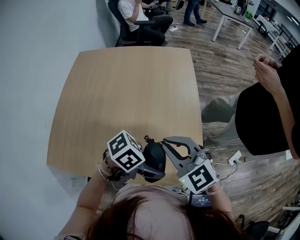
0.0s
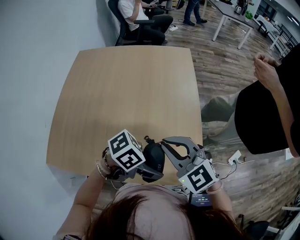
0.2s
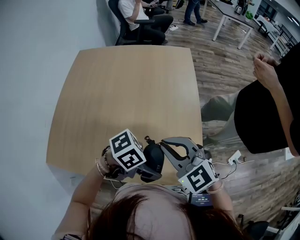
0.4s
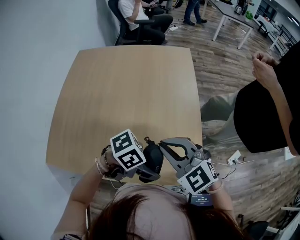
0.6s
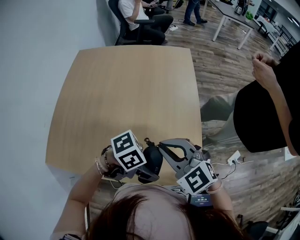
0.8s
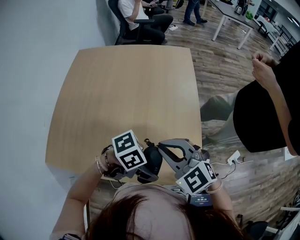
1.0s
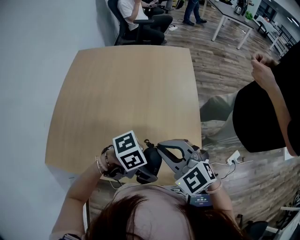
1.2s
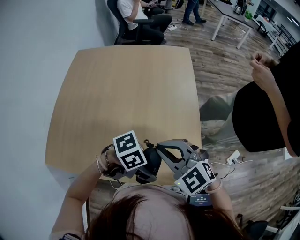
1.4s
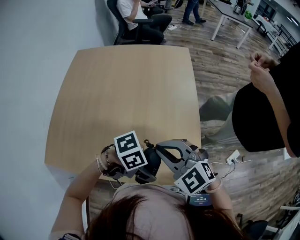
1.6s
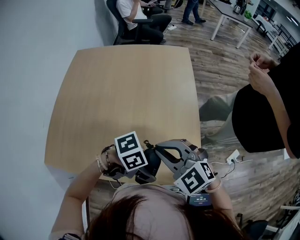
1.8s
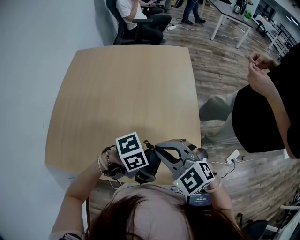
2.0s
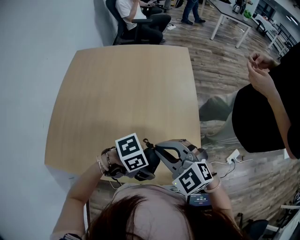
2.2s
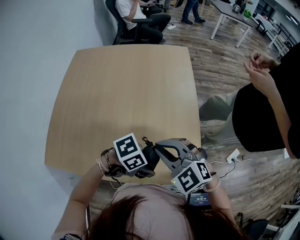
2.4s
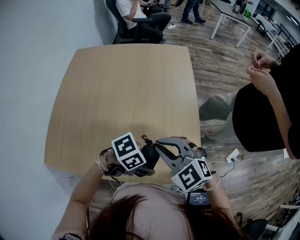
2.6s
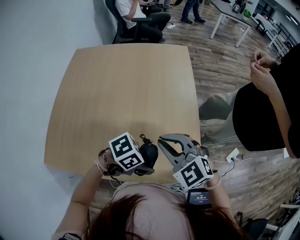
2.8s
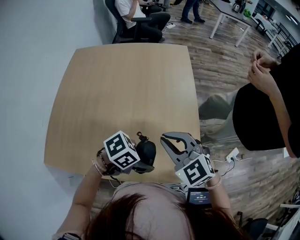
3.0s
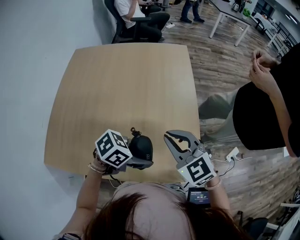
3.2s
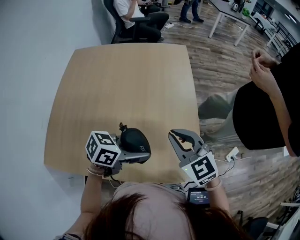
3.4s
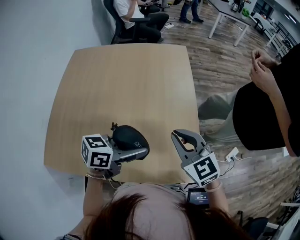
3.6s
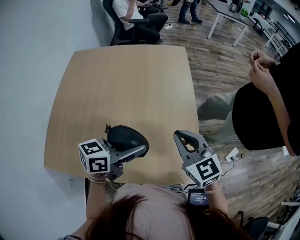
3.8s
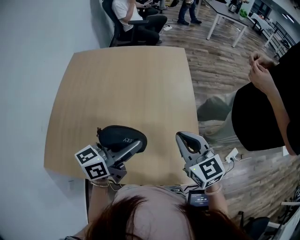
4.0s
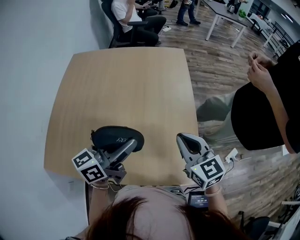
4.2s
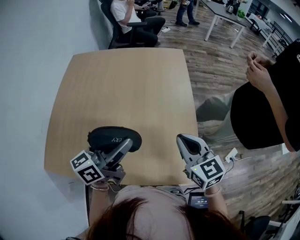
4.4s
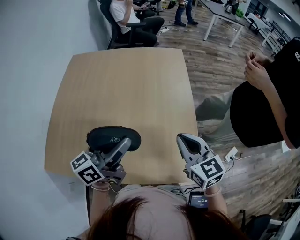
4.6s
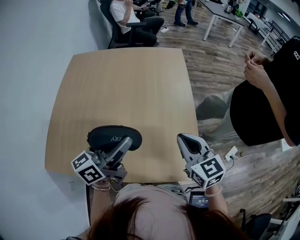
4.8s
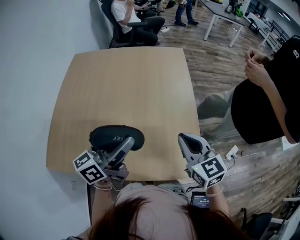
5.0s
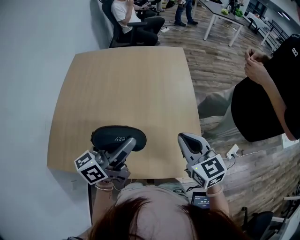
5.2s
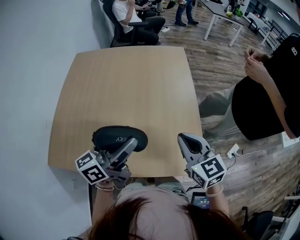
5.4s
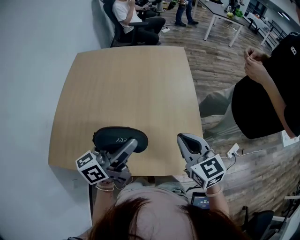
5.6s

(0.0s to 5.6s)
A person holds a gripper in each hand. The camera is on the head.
0.0s - 1.4s: The grippers stay close to where they were, moving slightly.
1.4s - 2.8s: The grippers make only small movements.
2.8s - 4.2s: The left gripper shifts about 15 cm upward, and points its fingers roughly 50 degrees further upward. Meanwhile the right gripper changes place by some 10 cm, and rotates approximately 40 degrees.
4.2s - 5.6s: The grippers both shift backward by some 5 cm.

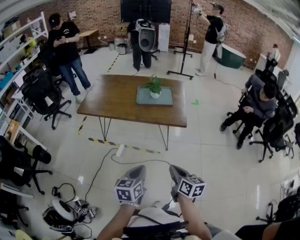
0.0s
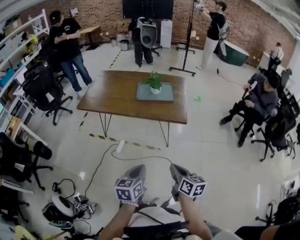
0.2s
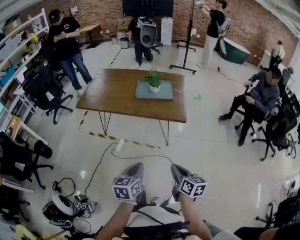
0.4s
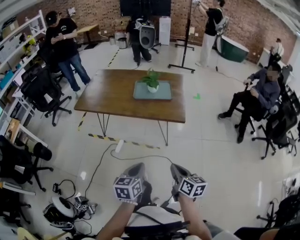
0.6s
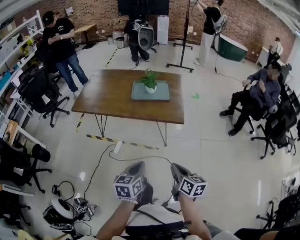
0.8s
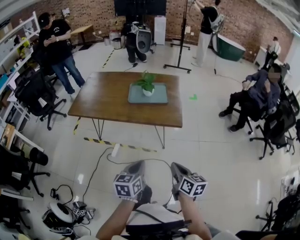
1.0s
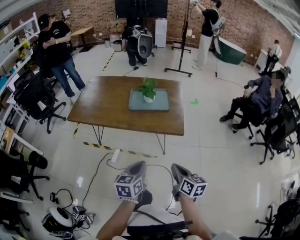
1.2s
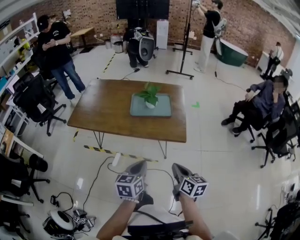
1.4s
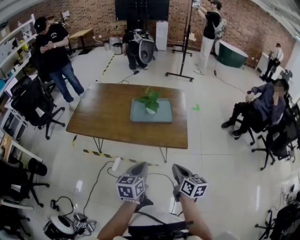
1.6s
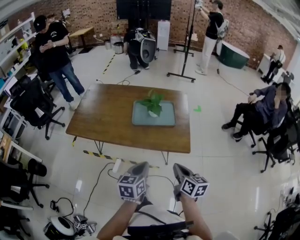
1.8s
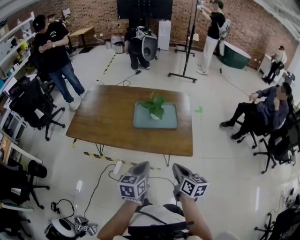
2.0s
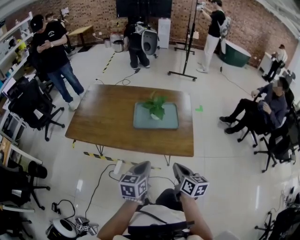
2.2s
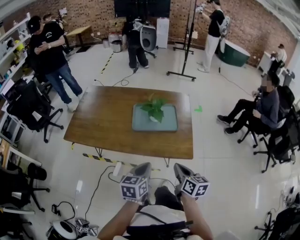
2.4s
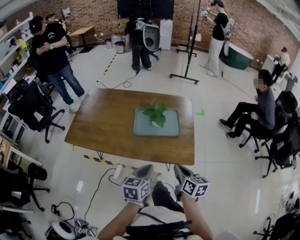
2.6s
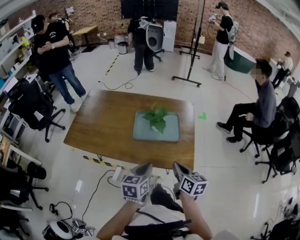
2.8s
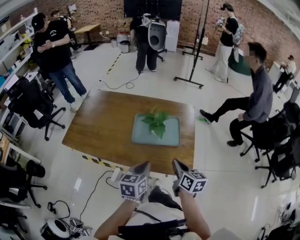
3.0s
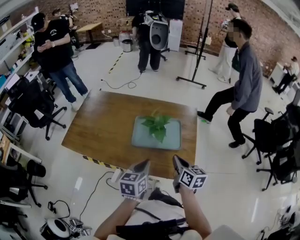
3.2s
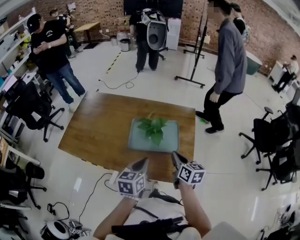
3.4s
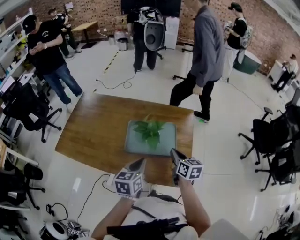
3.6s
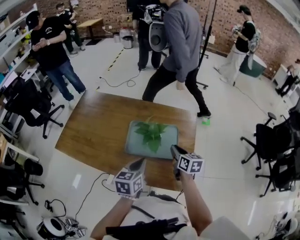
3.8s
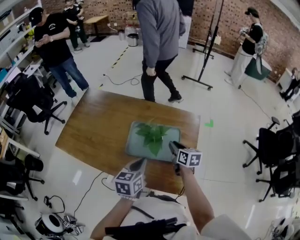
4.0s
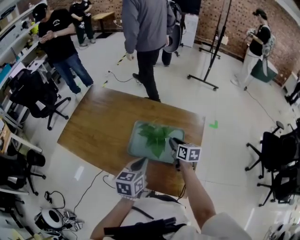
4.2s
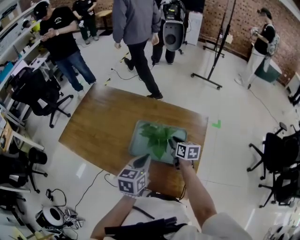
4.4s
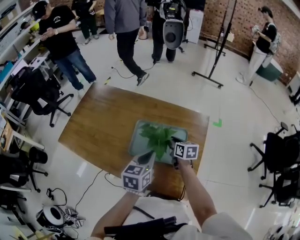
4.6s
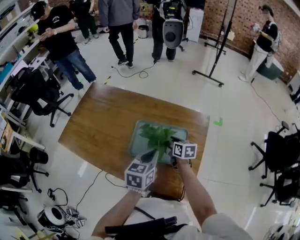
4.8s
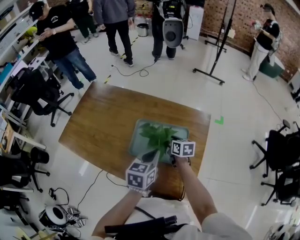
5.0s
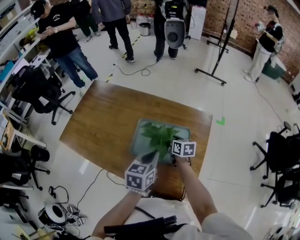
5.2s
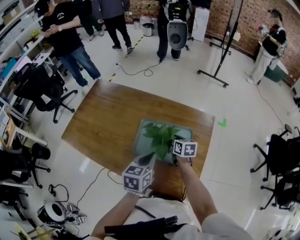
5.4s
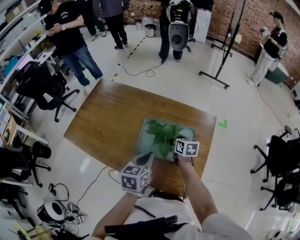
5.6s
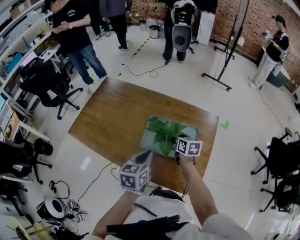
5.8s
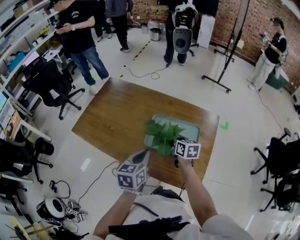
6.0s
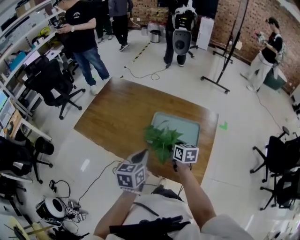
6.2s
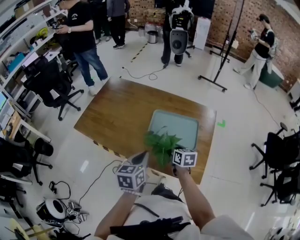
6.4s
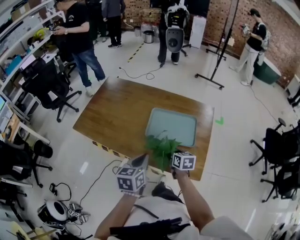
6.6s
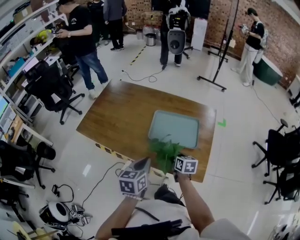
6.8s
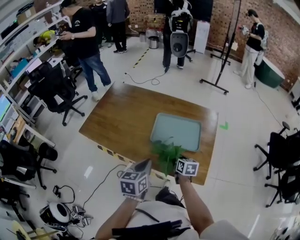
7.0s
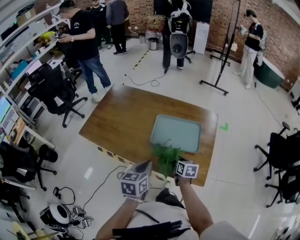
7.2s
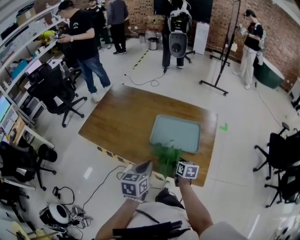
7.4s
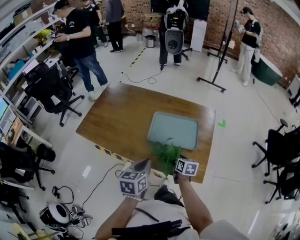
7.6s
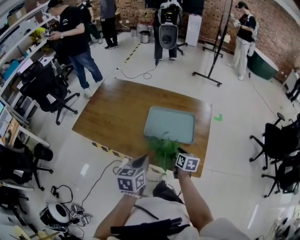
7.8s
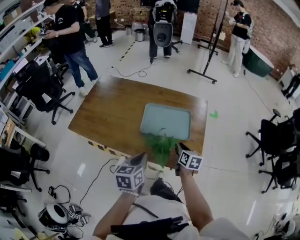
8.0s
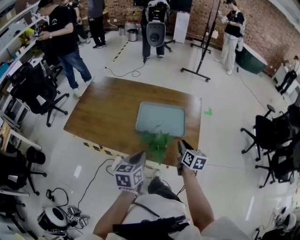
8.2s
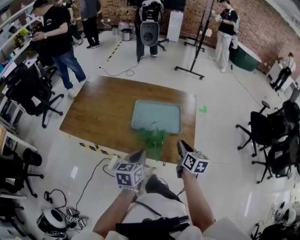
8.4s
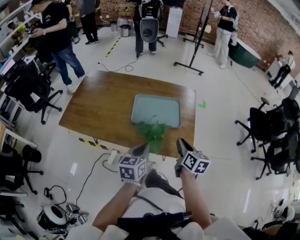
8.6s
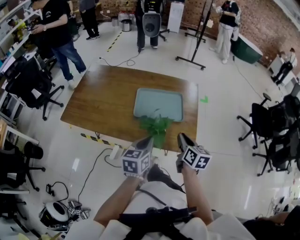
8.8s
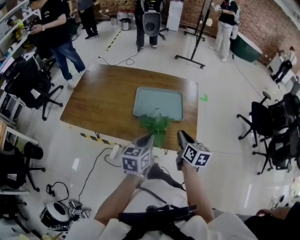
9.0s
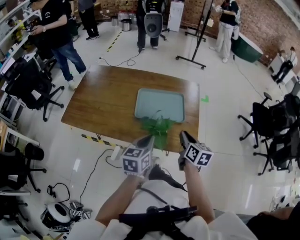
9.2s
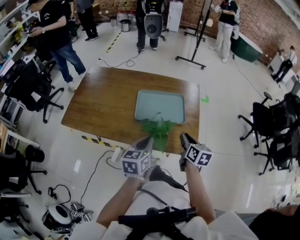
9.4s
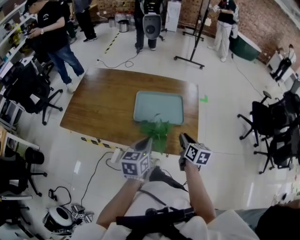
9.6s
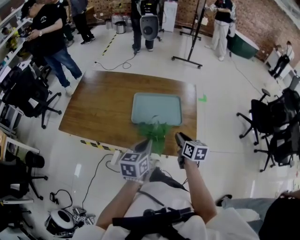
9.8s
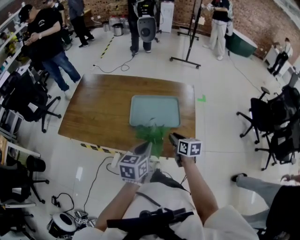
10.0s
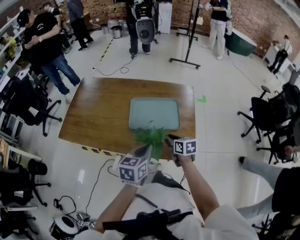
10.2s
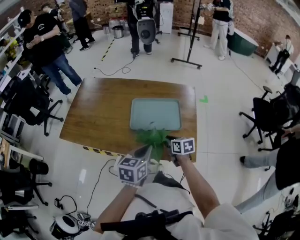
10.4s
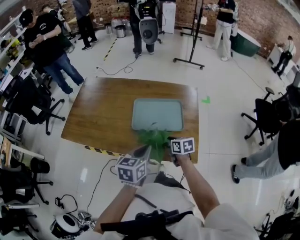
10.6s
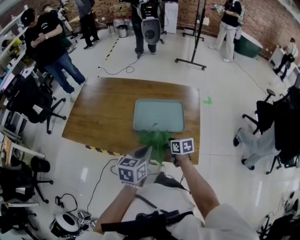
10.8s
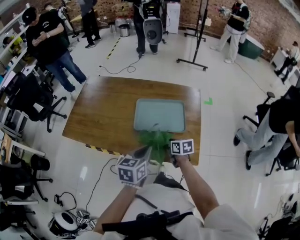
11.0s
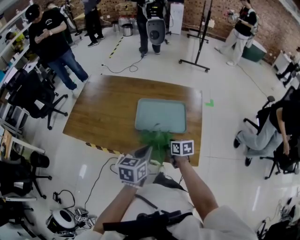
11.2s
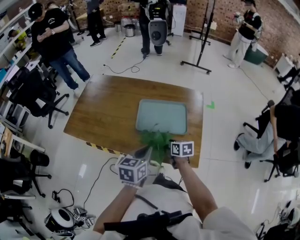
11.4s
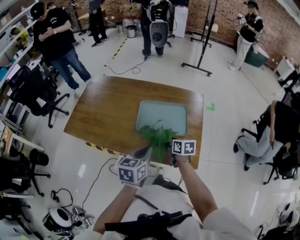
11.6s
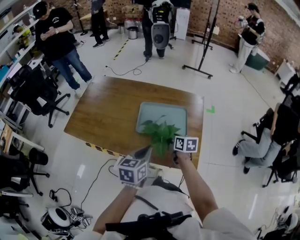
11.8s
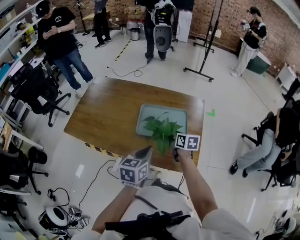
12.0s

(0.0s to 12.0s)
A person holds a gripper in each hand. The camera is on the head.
0.0s - 1.6s: The two grippers go roughly 20 cm forward.
1.6s - 3.0s: The two grippers go about 20 cm forward.
3.0s - 4.4s: The left gripper goes about 15 cm forward, while the right gripper shifts approximately 30 cm forward, and opens its fingers.
4.4s - 6.0s: Both grippers move to the left, roughly 10 cm.
6.0s - 7.6s: The right gripper moves backward and downward, about 15 cm; the left gripper goes some 10 cm backward.
7.6s - 9.0s: The right gripper moves upward, backward and to the right, approximately 15 cm, while the left gripper travels to the right by about 5 cm.
9.0s - 10.4s: The right gripper is displaced downward, forward and to the left by about 15 cm, and turns by approximately 20 degrees.
10.4s - 12.0s: The right gripper is displaced forward by roughly 10 cm.

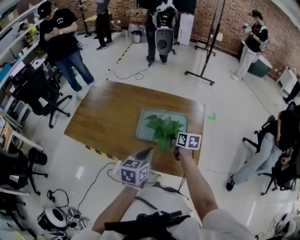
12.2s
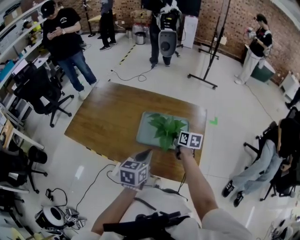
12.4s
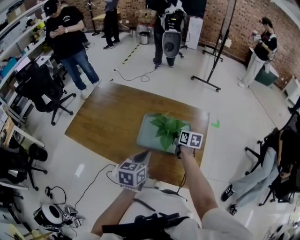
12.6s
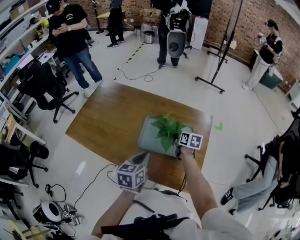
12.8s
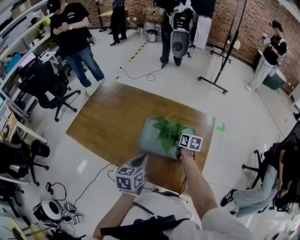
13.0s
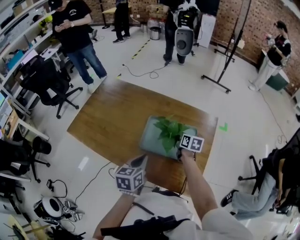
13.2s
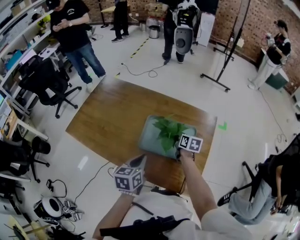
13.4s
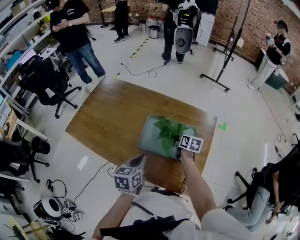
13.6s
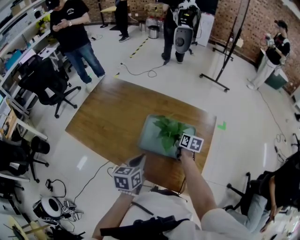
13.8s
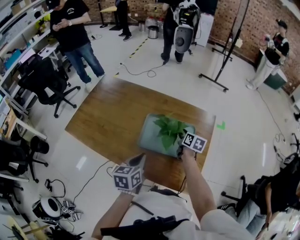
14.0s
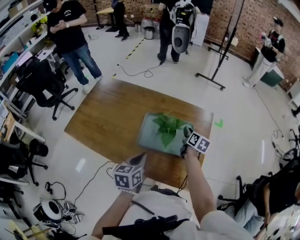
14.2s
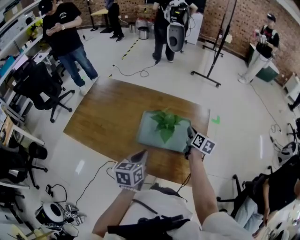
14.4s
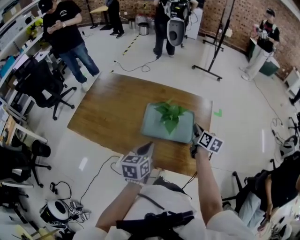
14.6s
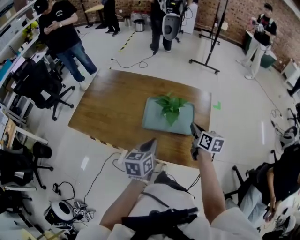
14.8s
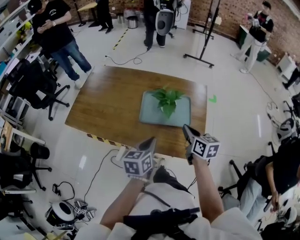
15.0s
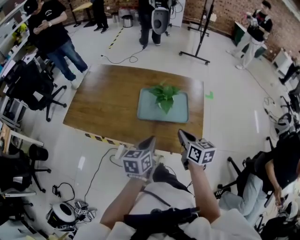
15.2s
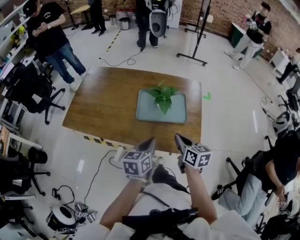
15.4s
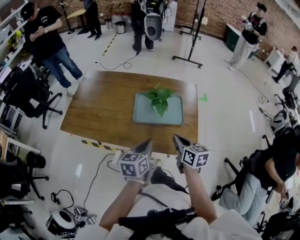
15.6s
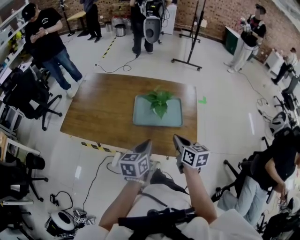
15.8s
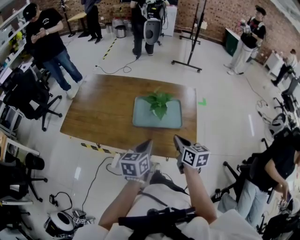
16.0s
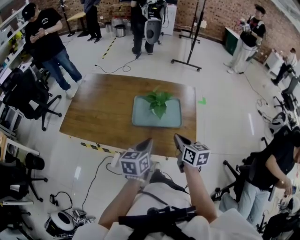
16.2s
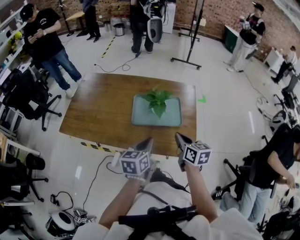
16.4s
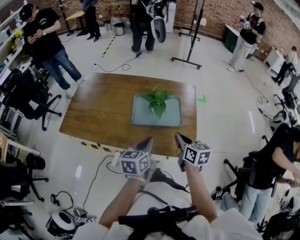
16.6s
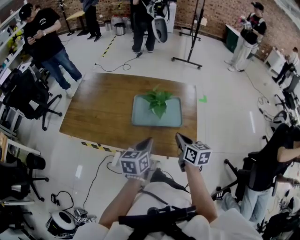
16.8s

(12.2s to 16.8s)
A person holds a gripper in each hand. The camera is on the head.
12.2s - 13.8s: The left gripper shifts some 5 cm forward, while the right gripper goes roughly 10 cm forward and downward.
13.8s - 15.2s: The left gripper travels backward by approximately 10 cm. The right gripper travels backward and upward by roughly 30 cm, and closes up.
15.2s - 16.8s: The grippers stay close to where they were, moving slightly.

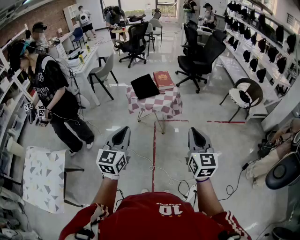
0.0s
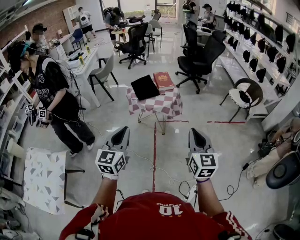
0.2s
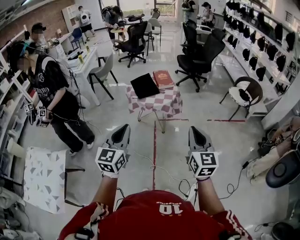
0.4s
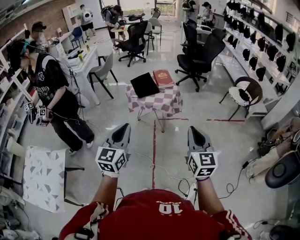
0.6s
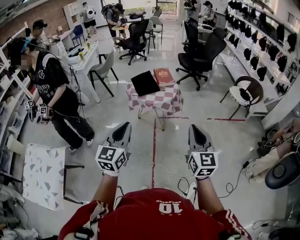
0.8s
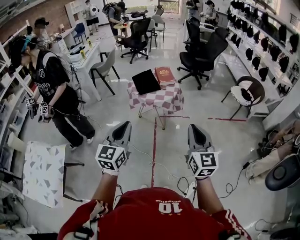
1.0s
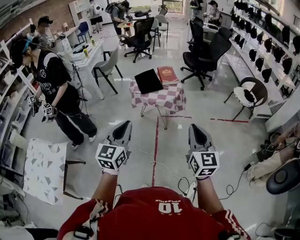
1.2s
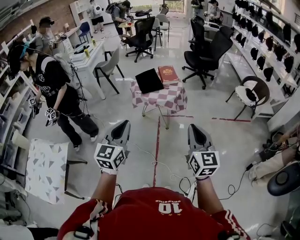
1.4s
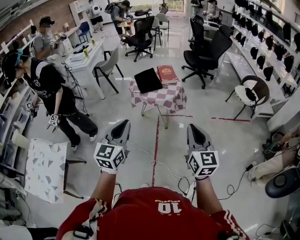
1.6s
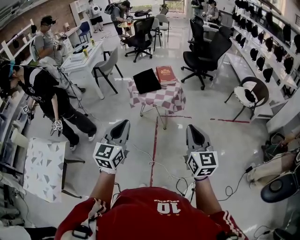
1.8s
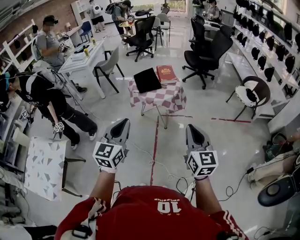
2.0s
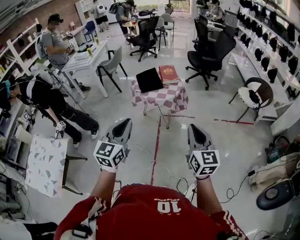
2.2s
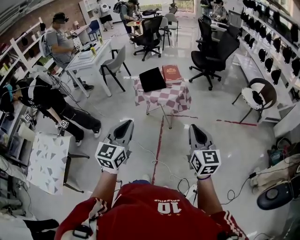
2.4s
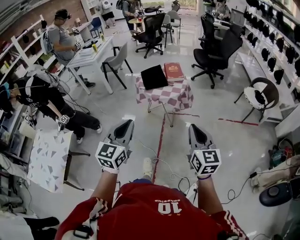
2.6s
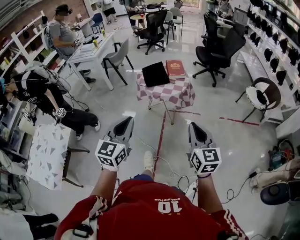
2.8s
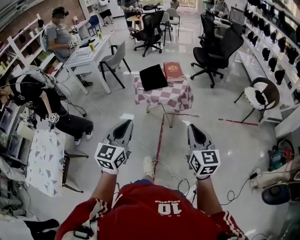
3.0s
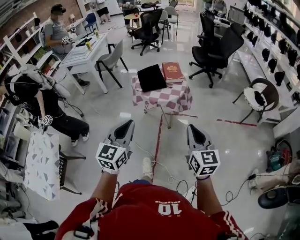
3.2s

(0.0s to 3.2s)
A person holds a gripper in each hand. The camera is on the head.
0.0s - 1.6s: The grippers move only a little.
1.6s - 3.2s: Both grippers travel together forward, some 10 cm.
